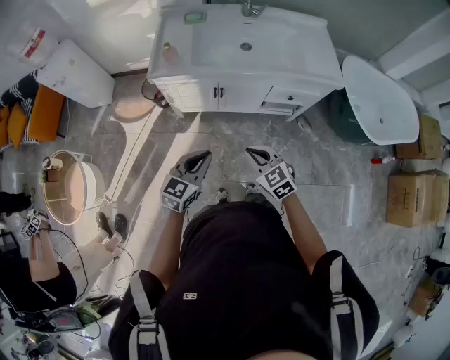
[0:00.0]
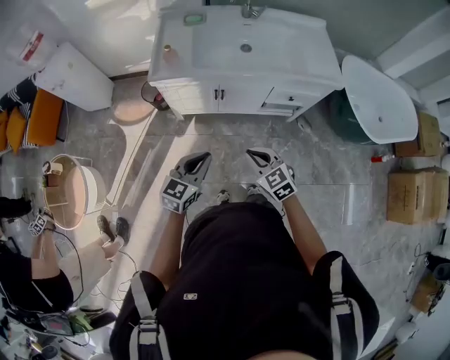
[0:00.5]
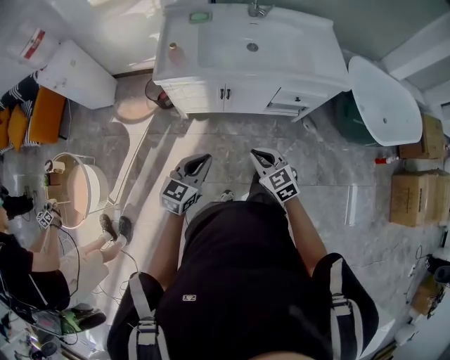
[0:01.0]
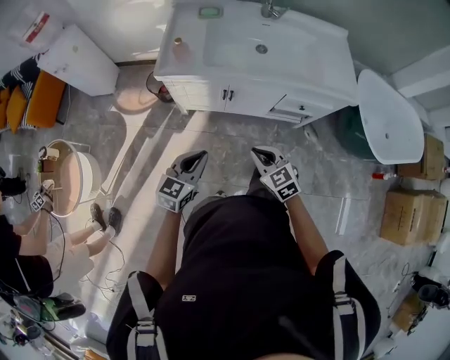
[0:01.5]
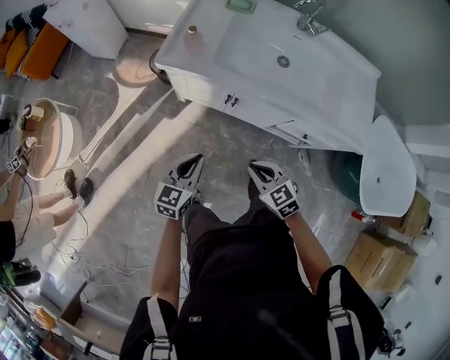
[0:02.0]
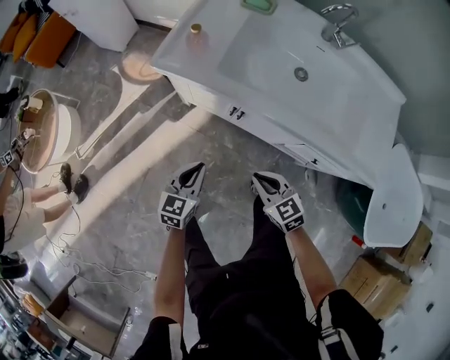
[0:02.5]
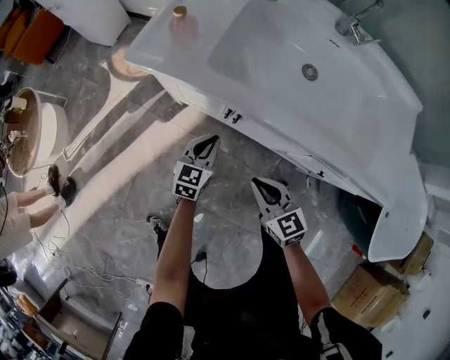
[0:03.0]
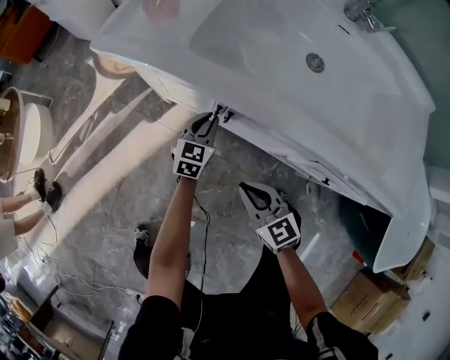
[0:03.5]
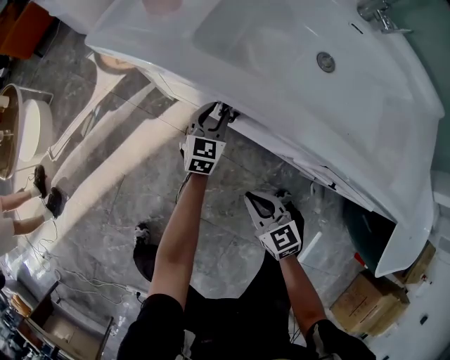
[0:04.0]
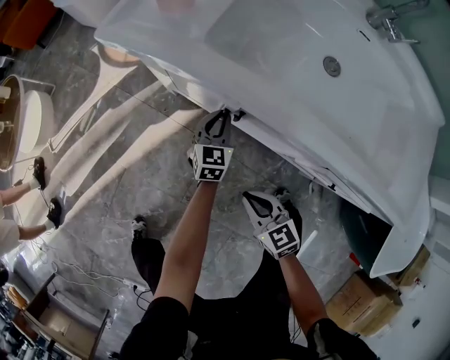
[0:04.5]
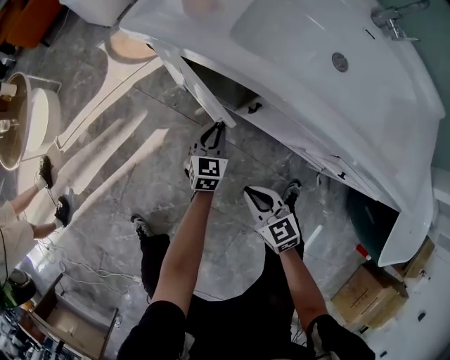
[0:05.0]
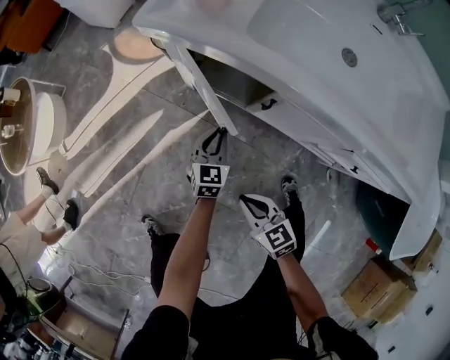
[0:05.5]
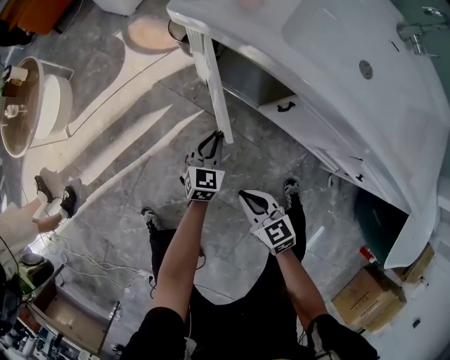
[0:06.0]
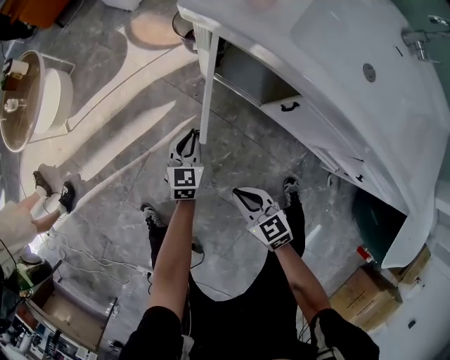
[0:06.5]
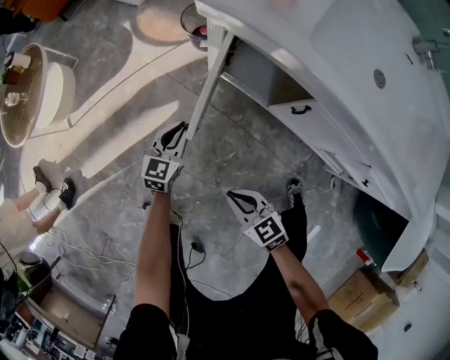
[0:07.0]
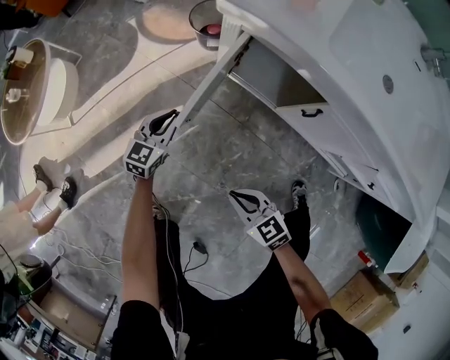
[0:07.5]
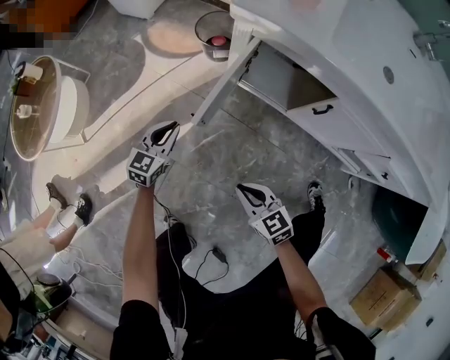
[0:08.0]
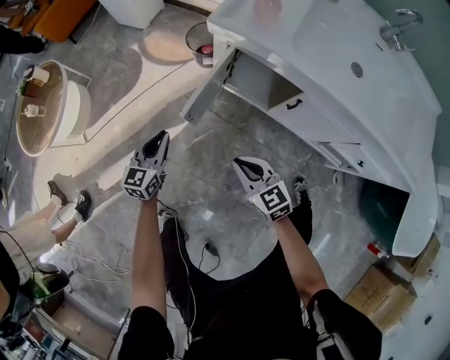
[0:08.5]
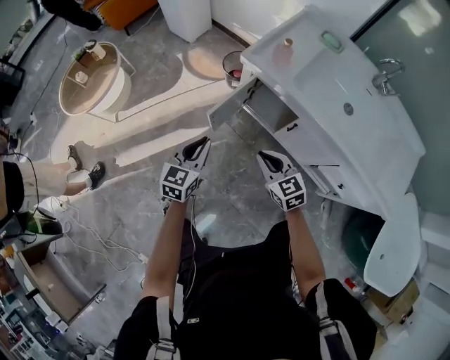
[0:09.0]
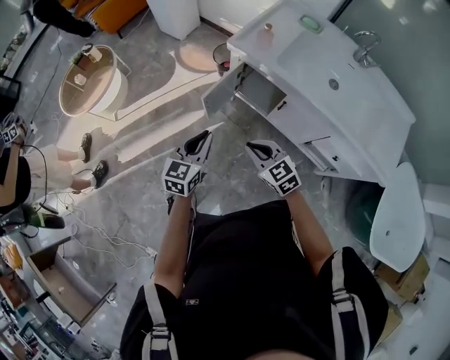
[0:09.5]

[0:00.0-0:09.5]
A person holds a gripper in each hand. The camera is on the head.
0:00.0 to 0:02.0: Both grippers move forward and downward, roughly 15 cm. The left gripper swivels about 30 degrees. The right gripper turns by about 20 degrees.
0:02.0 to 0:04.0: The right gripper is displaced downward by about 25 cm. The left gripper travels downward, forward and to the right by some 40 cm, and opens its fingers.
0:04.0 to 0:05.5: The left gripper heads to the left and backward, covering some 15 cm, and closes. Meanwhile the right gripper heads to the left, covering approximately 15 cm.
0:05.5 to 0:07.5: The left gripper is displaced to the left by about 25 cm. Meanwhile the right gripper goes roughly 15 cm to the left.
0:07.5 to 0:09.5: The right gripper moves upward, roughly 30 cm, and rotates approximately 20 degrees, while the left gripper travels upward and backward by roughly 40 cm.

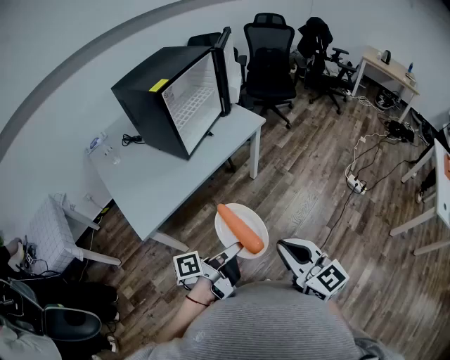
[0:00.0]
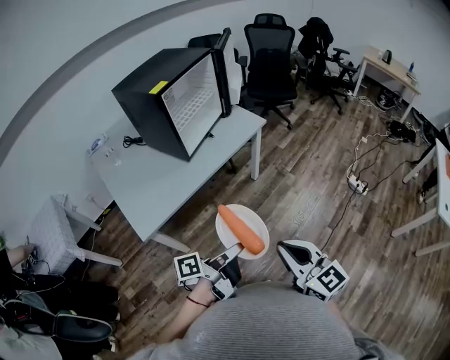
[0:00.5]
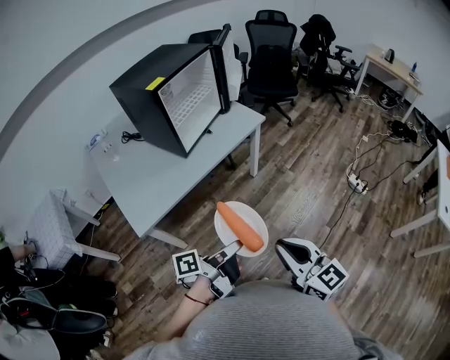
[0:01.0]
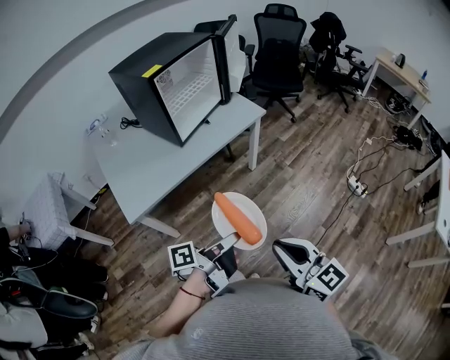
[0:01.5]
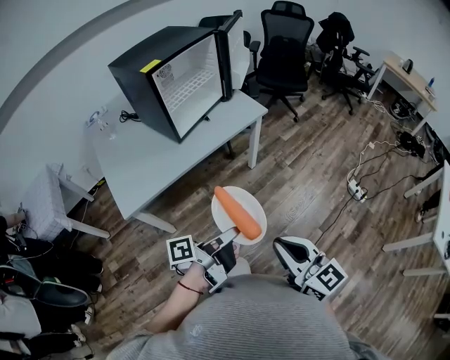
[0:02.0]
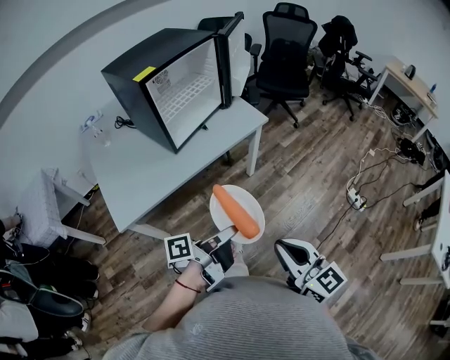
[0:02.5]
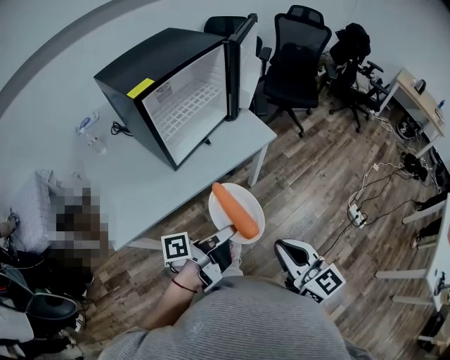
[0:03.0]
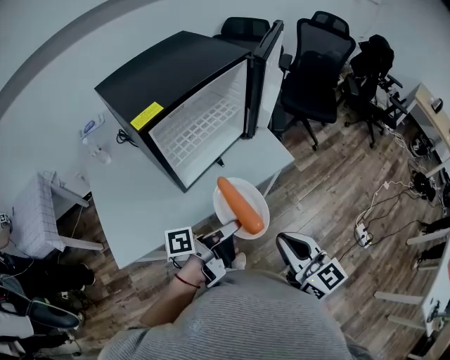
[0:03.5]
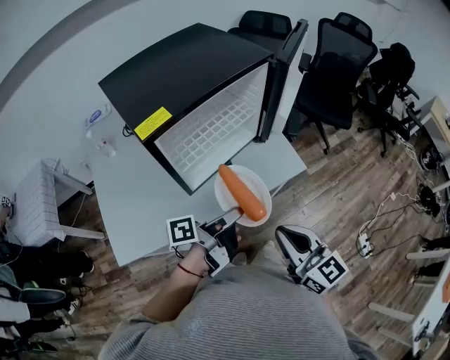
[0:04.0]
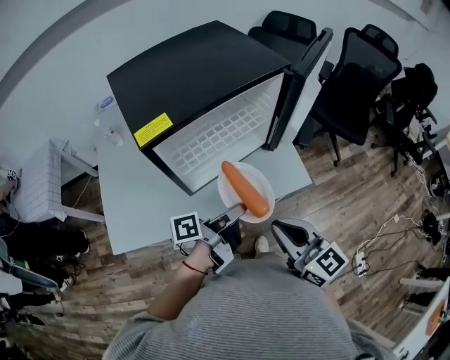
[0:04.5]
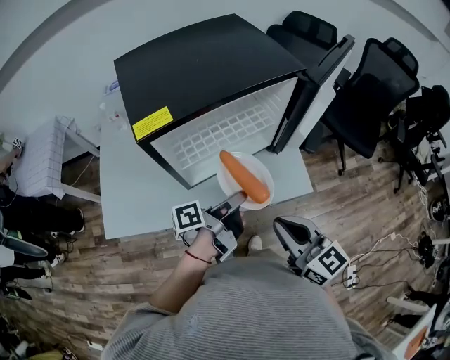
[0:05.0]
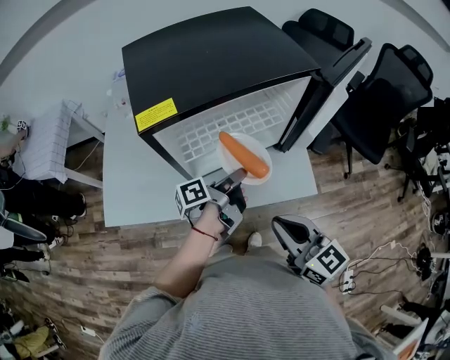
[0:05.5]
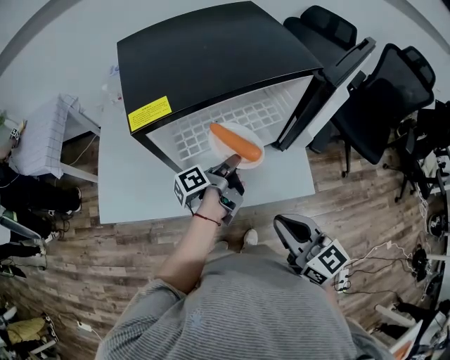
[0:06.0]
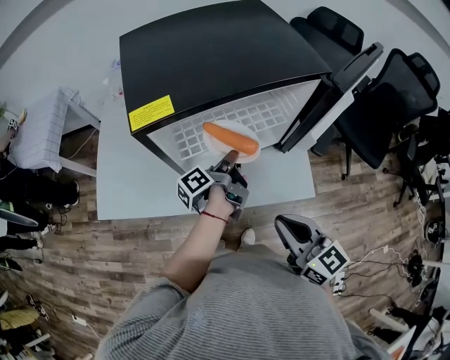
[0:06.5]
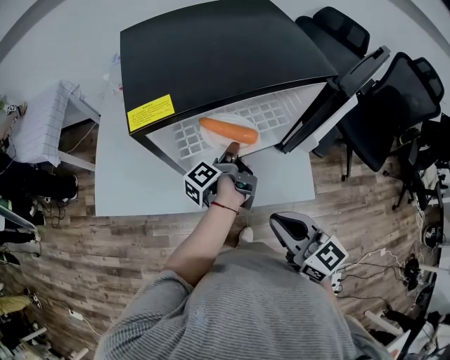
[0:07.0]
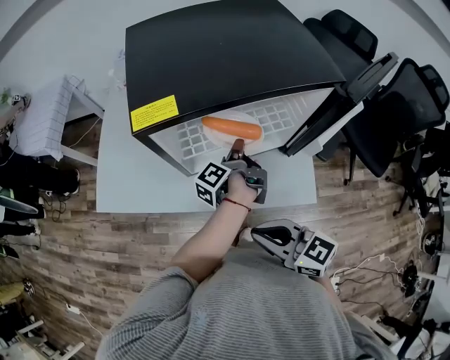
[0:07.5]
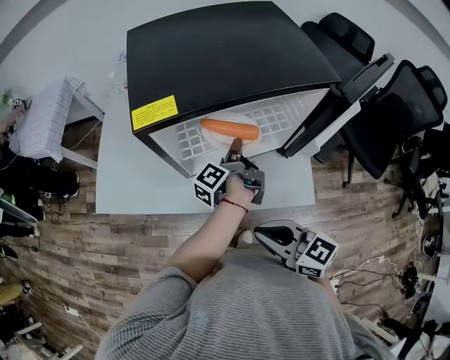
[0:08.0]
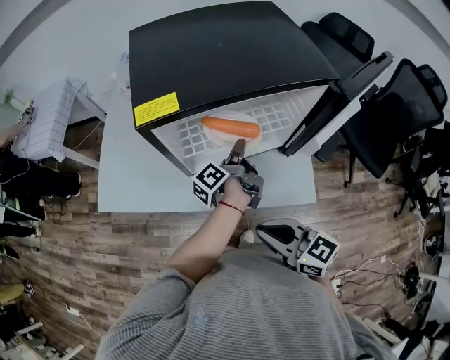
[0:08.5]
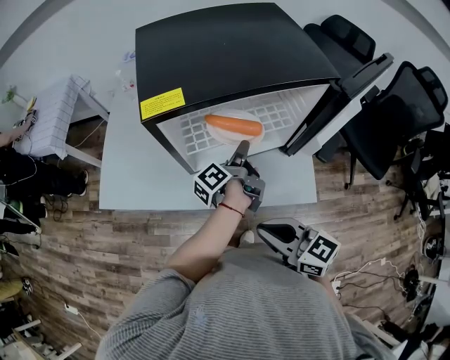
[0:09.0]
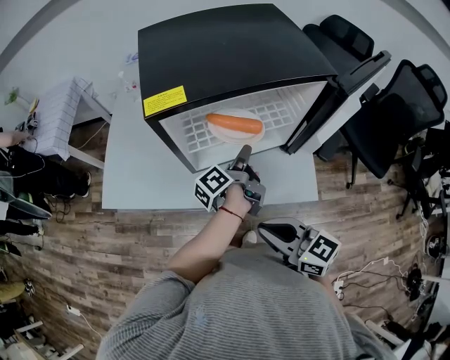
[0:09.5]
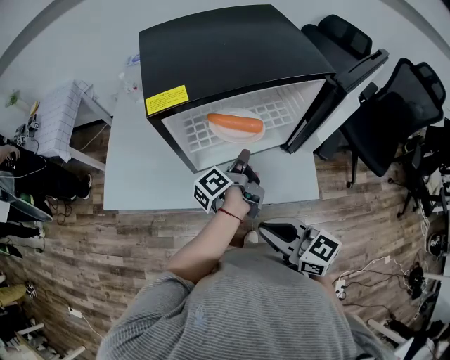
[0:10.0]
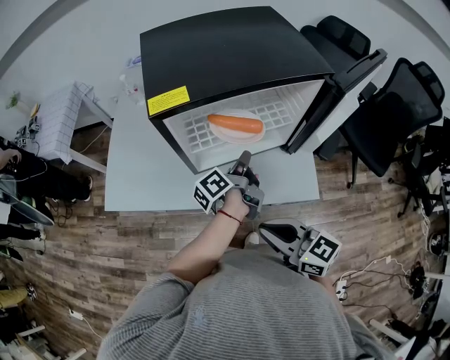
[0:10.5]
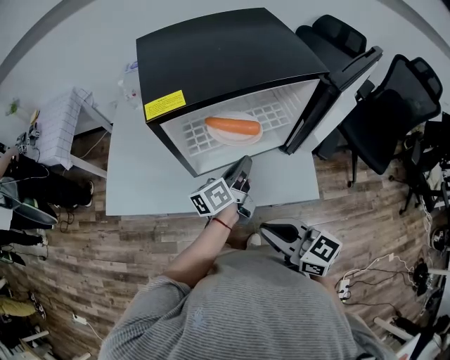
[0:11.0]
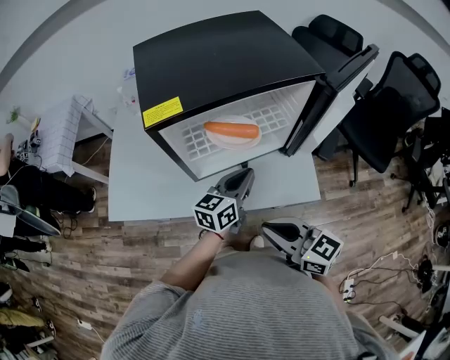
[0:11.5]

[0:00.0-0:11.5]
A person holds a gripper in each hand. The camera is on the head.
0:00.0 to 0:02.0: The right gripper ends up about 10 cm from where it was.
0:02.0 to 0:04.0: The right gripper moves approximately 40 cm.
0:04.0 to 0:06.0: The right gripper ends up approximately 10 cm from where it was, and swivels roughly 20 degrees.
0:06.0 to 0:07.5: The right gripper ends up some 5 cm from where it was, and swivels approximately 30 degrees.

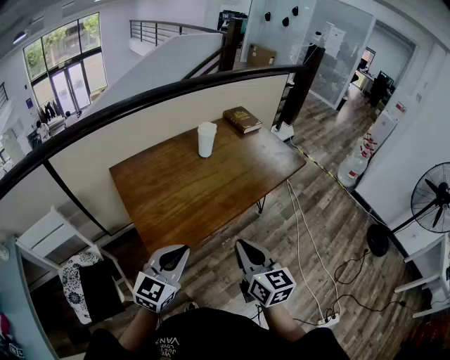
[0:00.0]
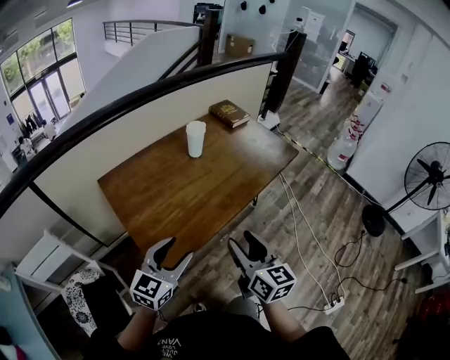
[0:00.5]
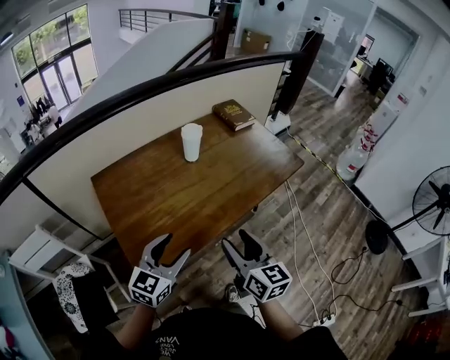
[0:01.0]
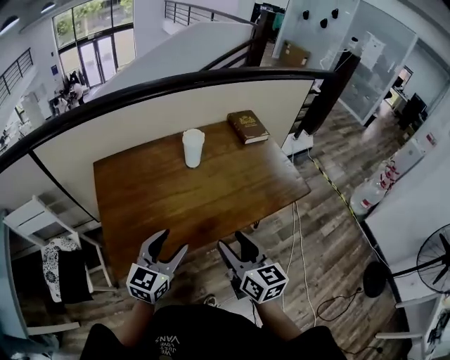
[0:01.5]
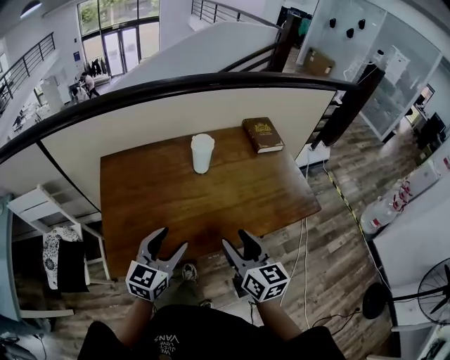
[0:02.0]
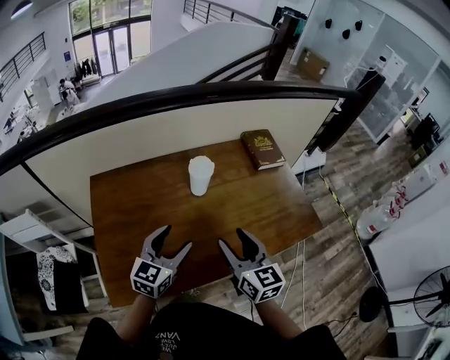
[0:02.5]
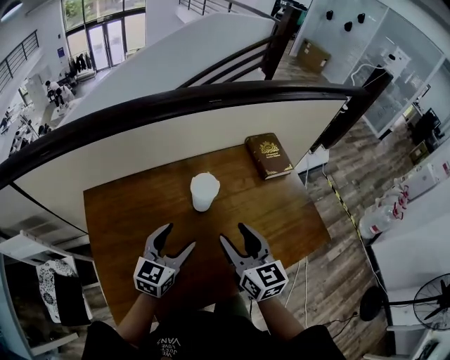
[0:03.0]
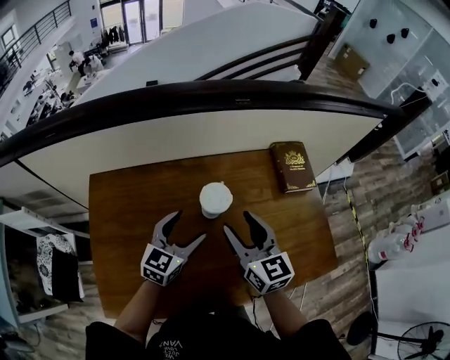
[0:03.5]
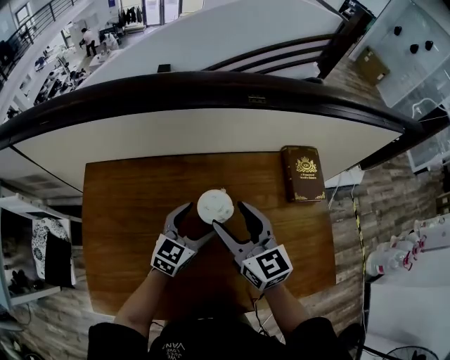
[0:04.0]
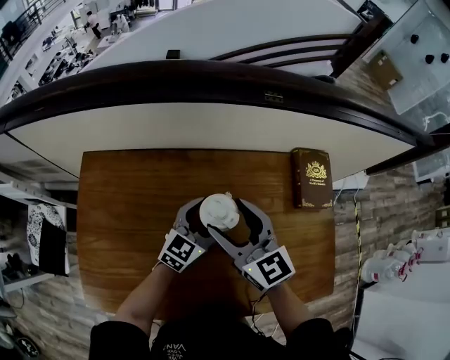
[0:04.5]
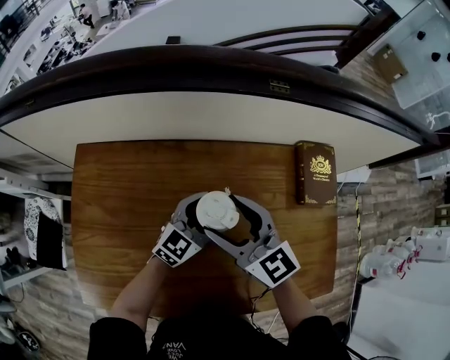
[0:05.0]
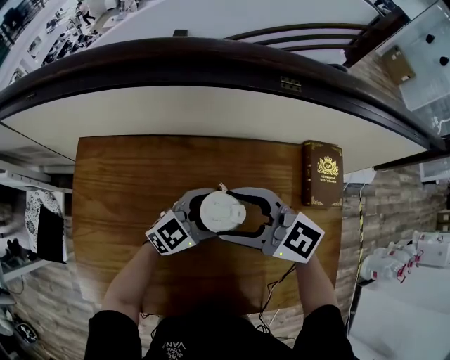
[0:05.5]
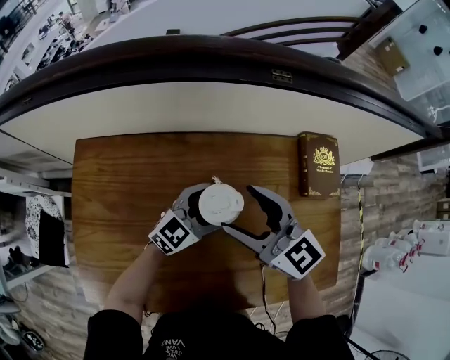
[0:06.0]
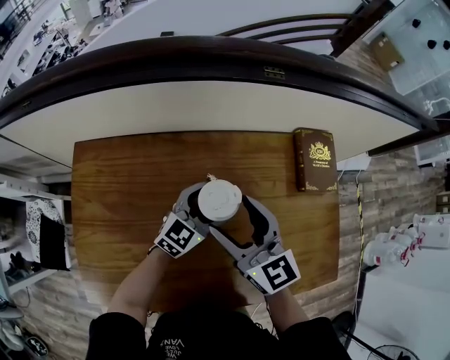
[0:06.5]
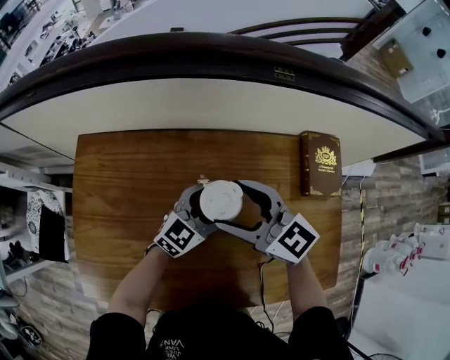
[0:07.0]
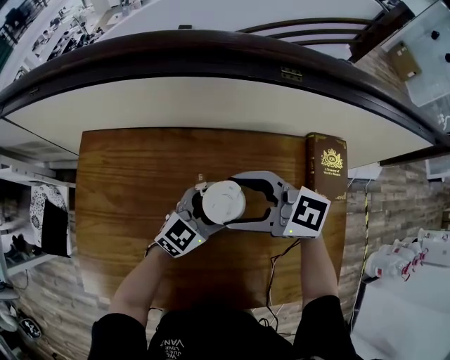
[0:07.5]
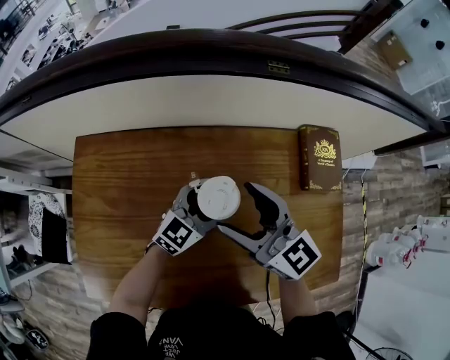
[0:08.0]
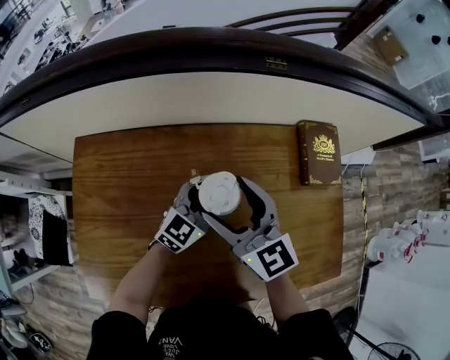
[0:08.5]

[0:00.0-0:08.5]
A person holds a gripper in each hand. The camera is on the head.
0:00.0 to 0:02.0: The left gripper moves approximately 25 cm, turns by roughly 30 degrees, and opens up. The right gripper changes place by about 25 cm, changes its angle by about 20 degrees, and opens up.
0:02.0 to 0:04.0: The two grippers go roughly 35 cm forward. The right gripper rotates some 20 degrees.
0:04.0 to 0:06.5: The left gripper shifts by some 5 cm.
